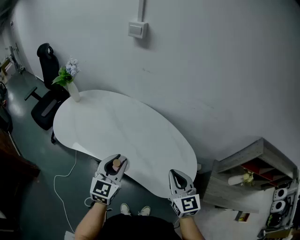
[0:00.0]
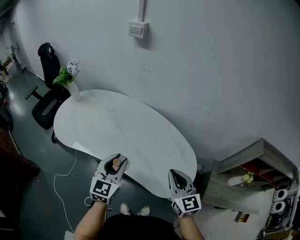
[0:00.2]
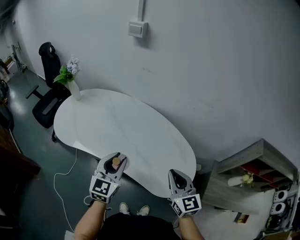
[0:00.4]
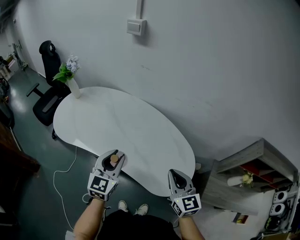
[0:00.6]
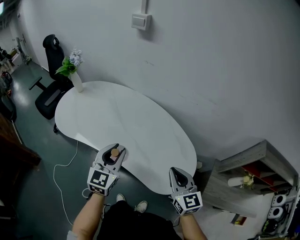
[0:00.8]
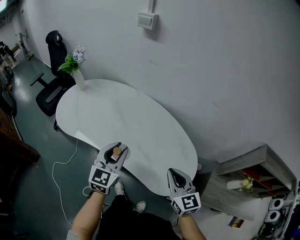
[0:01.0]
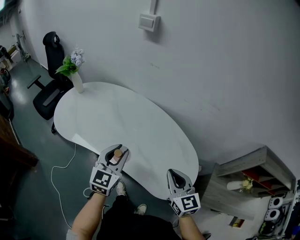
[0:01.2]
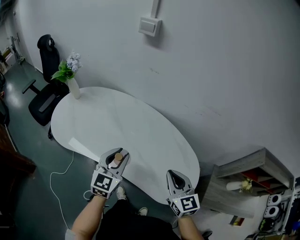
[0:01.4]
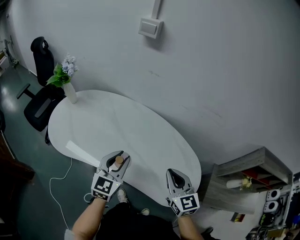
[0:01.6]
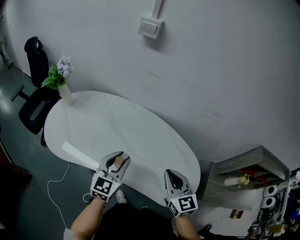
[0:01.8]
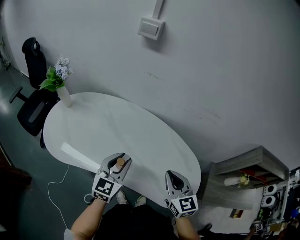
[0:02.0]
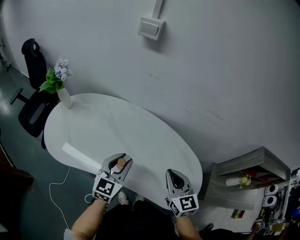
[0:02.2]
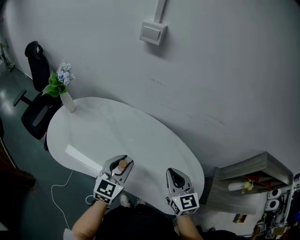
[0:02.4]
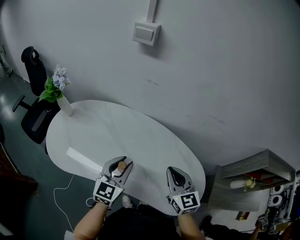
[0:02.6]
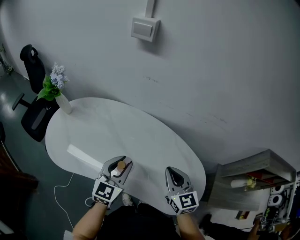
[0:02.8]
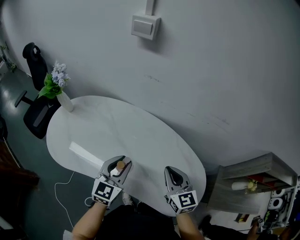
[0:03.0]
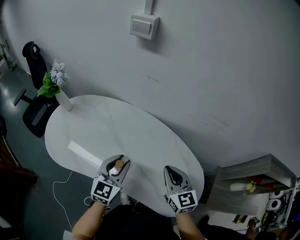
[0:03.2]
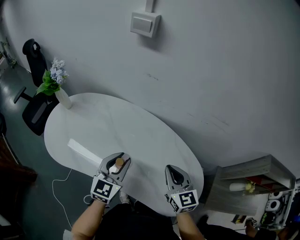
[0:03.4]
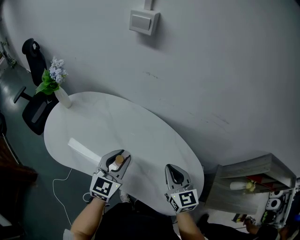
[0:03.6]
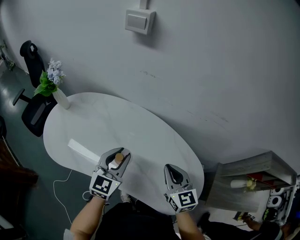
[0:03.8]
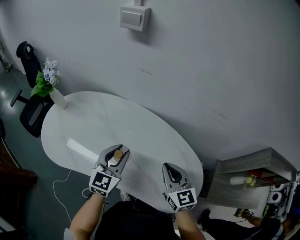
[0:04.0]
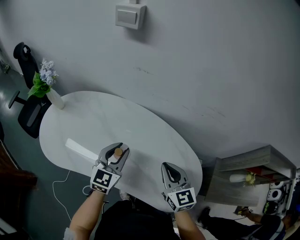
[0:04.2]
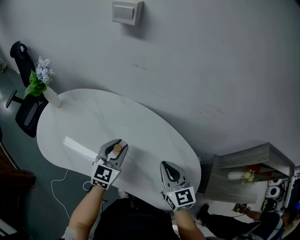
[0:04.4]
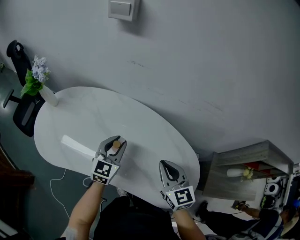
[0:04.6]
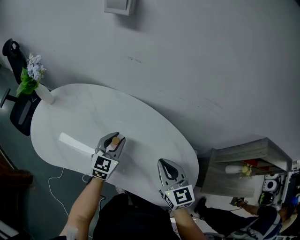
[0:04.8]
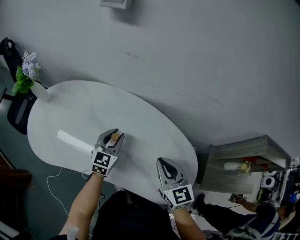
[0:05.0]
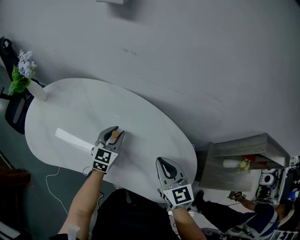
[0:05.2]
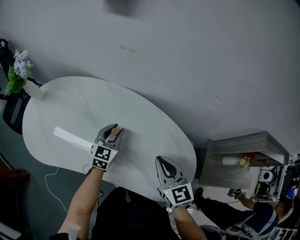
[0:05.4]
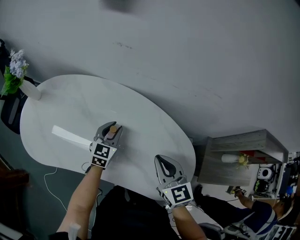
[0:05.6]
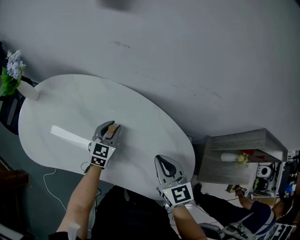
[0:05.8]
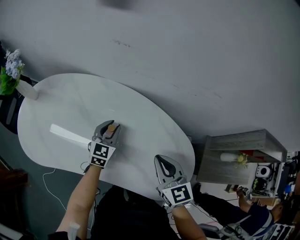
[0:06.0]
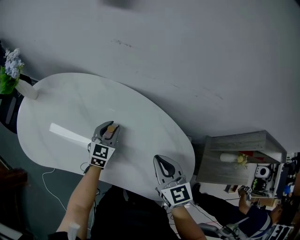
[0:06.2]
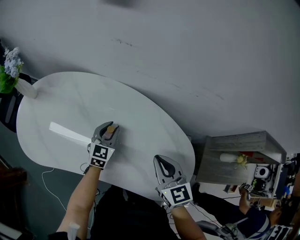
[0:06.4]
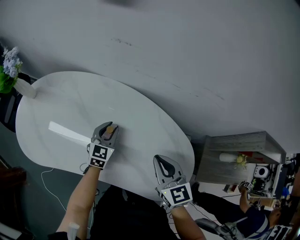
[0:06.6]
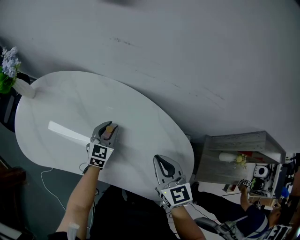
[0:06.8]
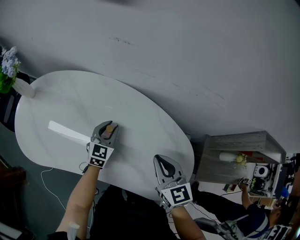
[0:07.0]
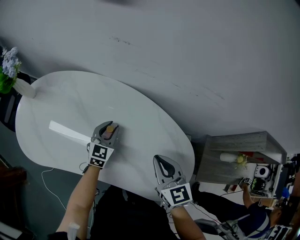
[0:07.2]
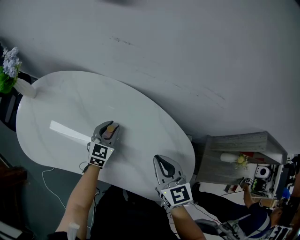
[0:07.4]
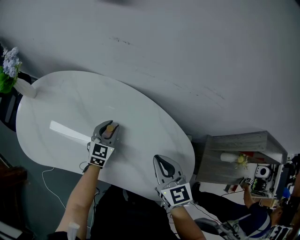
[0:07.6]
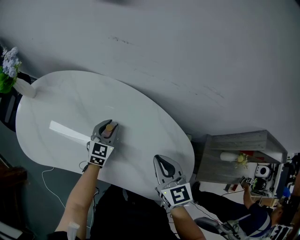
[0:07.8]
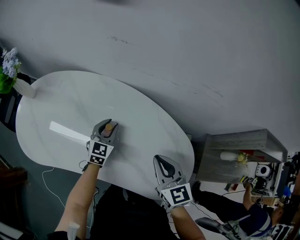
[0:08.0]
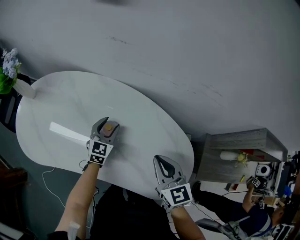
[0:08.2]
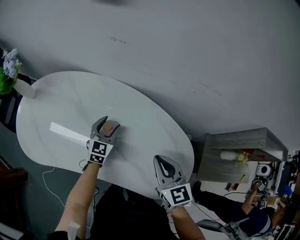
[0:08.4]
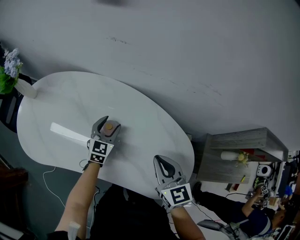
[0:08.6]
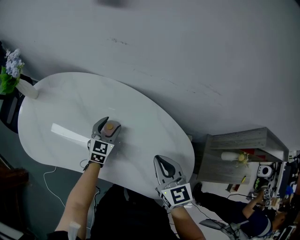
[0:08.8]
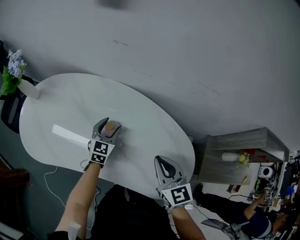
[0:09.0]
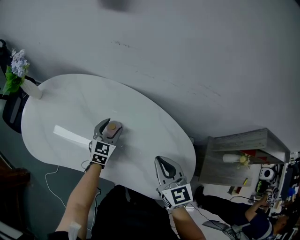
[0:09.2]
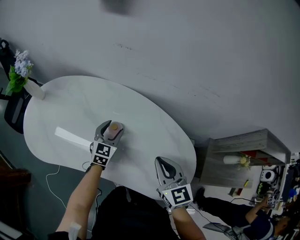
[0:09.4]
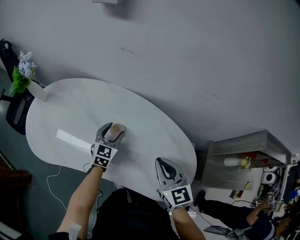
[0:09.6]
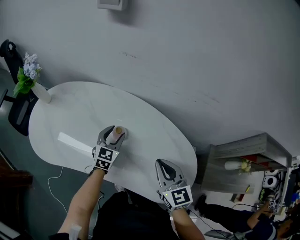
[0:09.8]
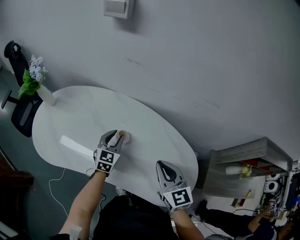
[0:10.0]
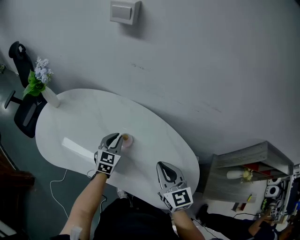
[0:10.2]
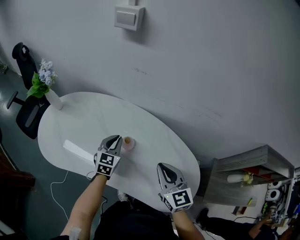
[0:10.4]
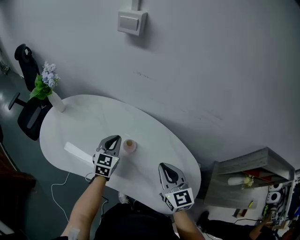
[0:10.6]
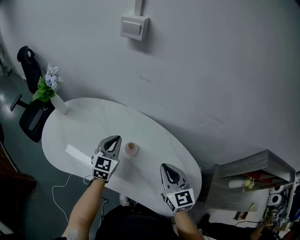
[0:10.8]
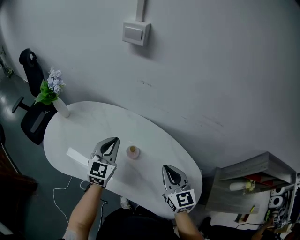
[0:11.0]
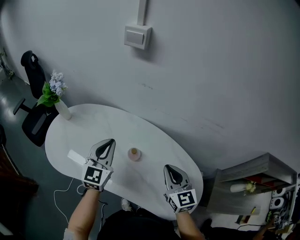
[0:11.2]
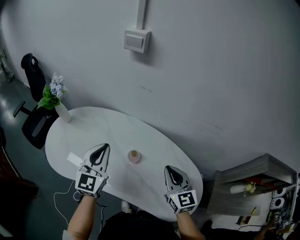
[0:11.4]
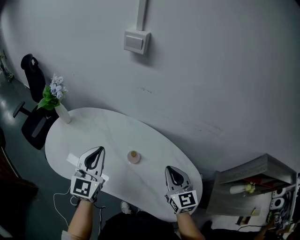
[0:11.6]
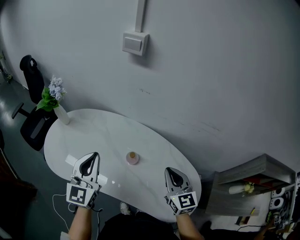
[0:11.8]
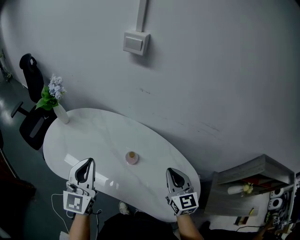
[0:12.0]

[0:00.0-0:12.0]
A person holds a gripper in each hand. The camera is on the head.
0:00.0 to 0:01.6: The right gripper is displaced forward and to the left by some 10 cm. Meanwhile the left gripper travels forward by some 10 cm.
0:01.6 to 0:03.0: The two grippers go some 10 cm forward.
0:03.0 to 0:04.4: The left gripper shifts some 5 cm forward.
0:04.4 to 0:06.0: The left gripper is displaced downward and forward by approximately 15 cm.
0:06.0 to 0:07.6: The grippers move only a little.
0:07.6 to 0:09.0: The left gripper opens its fingers.
0:09.0 to 0:10.4: The right gripper changes place by approximately 5 cm. Meanwhile the left gripper moves upward and to the left, approximately 10 cm, and closes up.
0:10.4 to 0:12.0: The left gripper travels upward, backward and to the left by about 25 cm, and changes its angle by about 30 degrees.

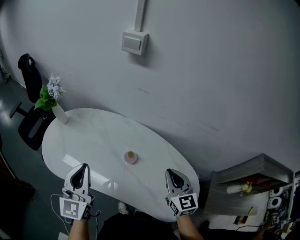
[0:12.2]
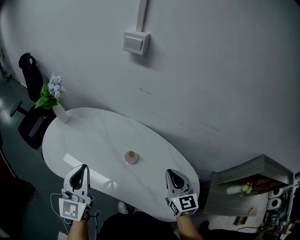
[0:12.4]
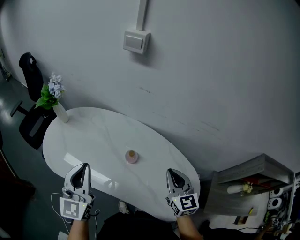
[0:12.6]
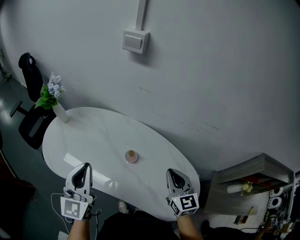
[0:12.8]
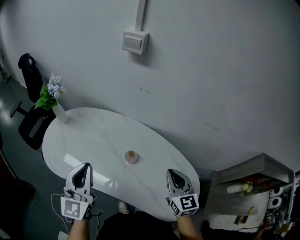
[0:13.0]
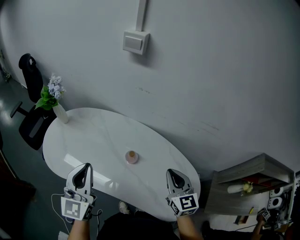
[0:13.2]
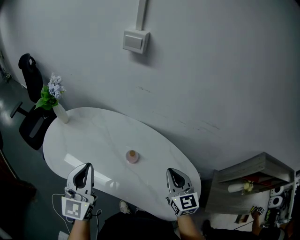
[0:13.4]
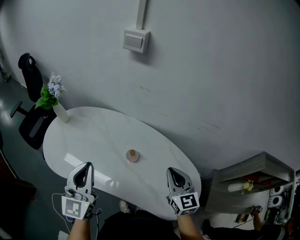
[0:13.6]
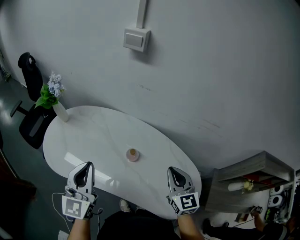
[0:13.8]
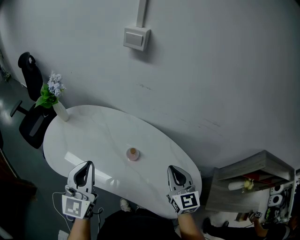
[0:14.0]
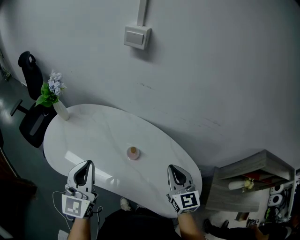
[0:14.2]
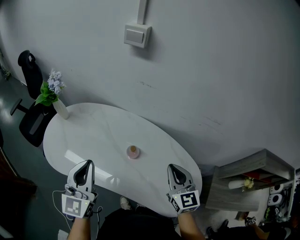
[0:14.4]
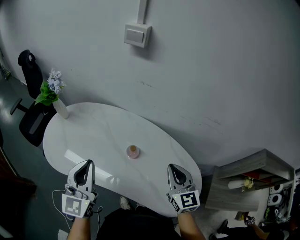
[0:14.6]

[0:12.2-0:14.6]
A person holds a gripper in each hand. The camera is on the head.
0:12.2 to 0:13.4: The two grippers keep their place.
0:13.4 to 0:14.6: The grippers make only small movements.

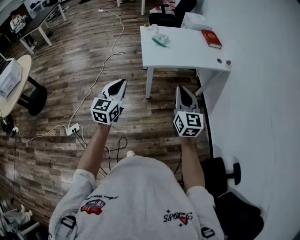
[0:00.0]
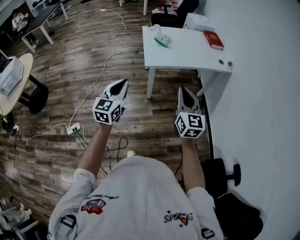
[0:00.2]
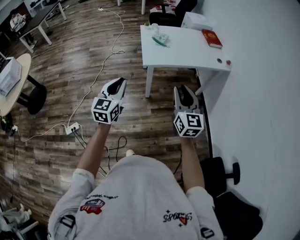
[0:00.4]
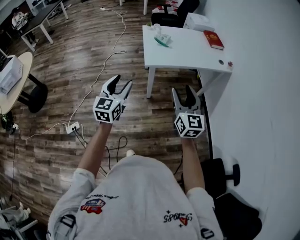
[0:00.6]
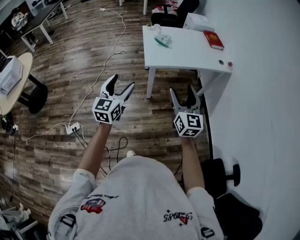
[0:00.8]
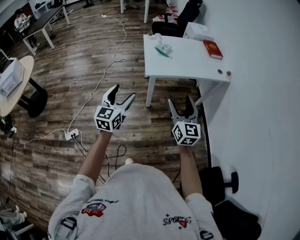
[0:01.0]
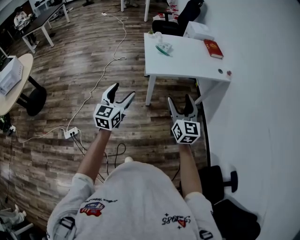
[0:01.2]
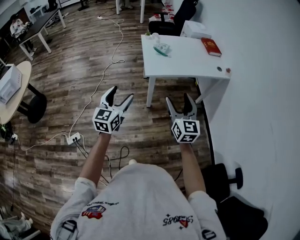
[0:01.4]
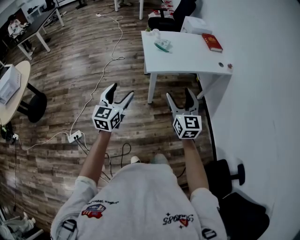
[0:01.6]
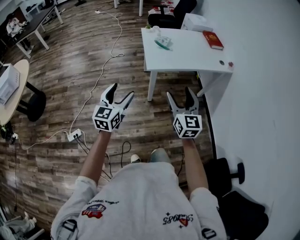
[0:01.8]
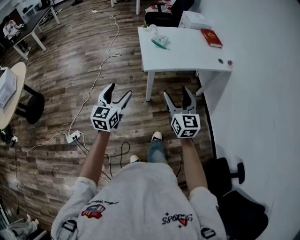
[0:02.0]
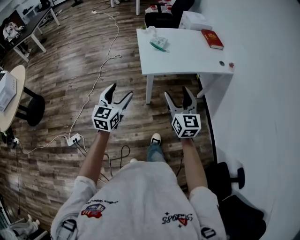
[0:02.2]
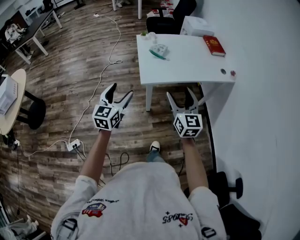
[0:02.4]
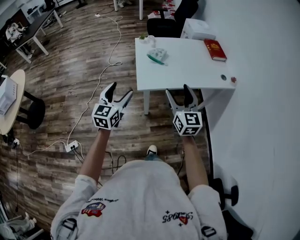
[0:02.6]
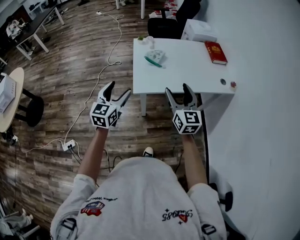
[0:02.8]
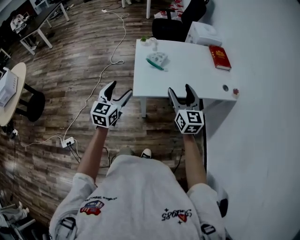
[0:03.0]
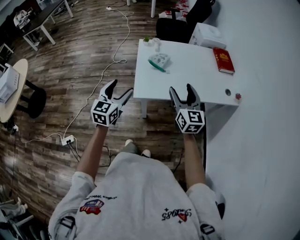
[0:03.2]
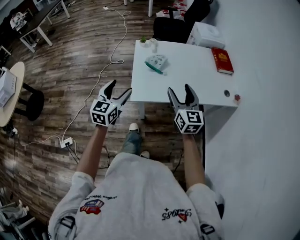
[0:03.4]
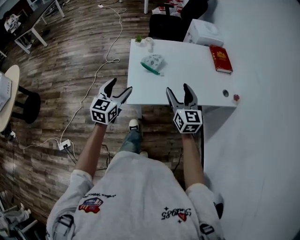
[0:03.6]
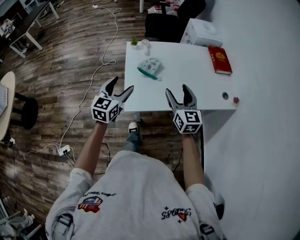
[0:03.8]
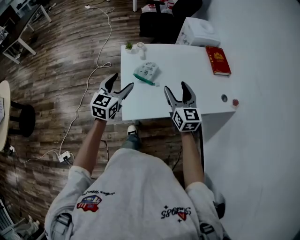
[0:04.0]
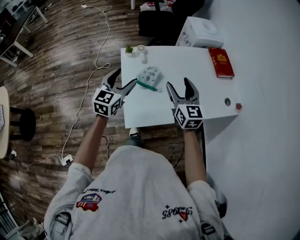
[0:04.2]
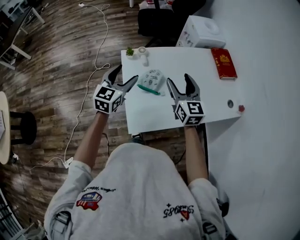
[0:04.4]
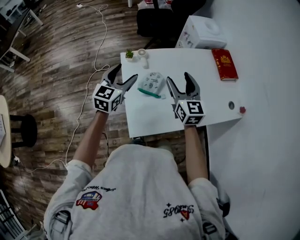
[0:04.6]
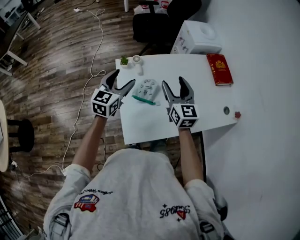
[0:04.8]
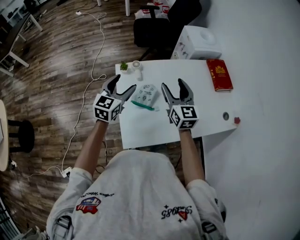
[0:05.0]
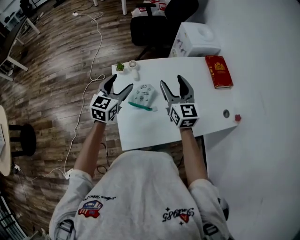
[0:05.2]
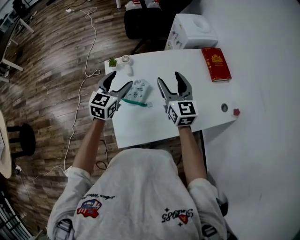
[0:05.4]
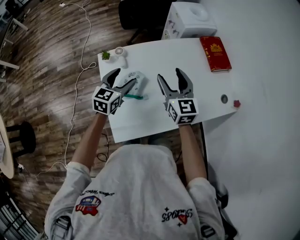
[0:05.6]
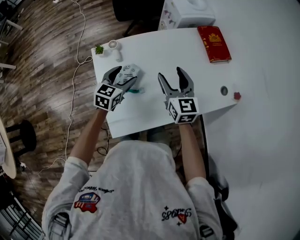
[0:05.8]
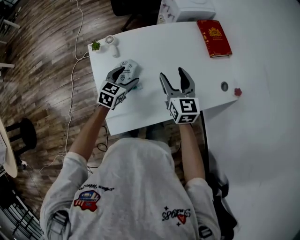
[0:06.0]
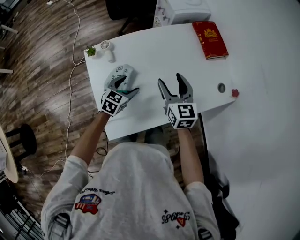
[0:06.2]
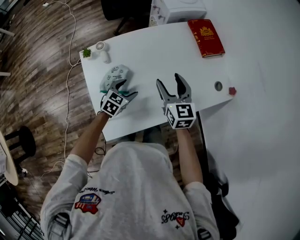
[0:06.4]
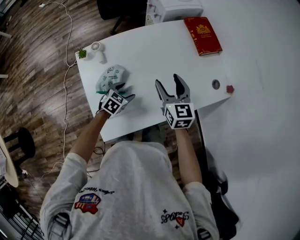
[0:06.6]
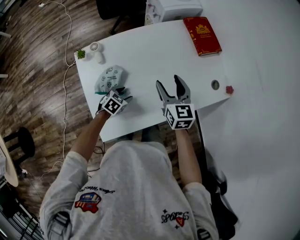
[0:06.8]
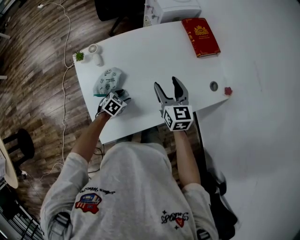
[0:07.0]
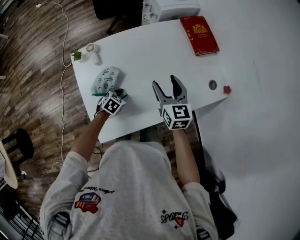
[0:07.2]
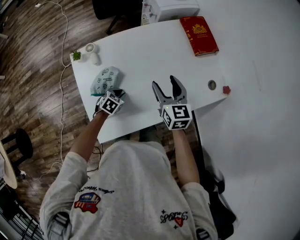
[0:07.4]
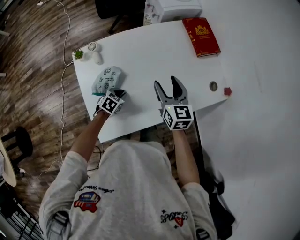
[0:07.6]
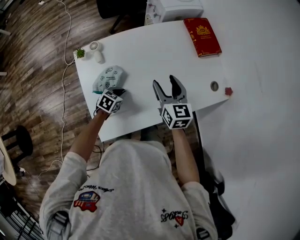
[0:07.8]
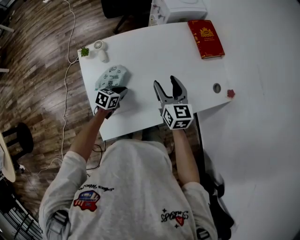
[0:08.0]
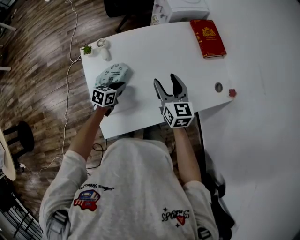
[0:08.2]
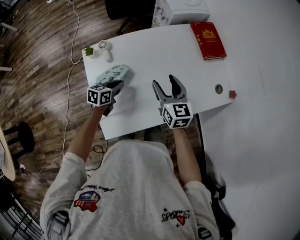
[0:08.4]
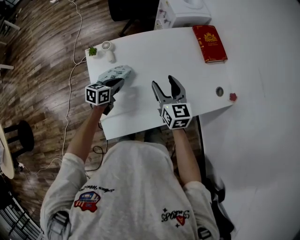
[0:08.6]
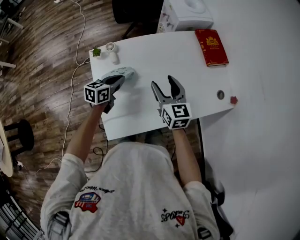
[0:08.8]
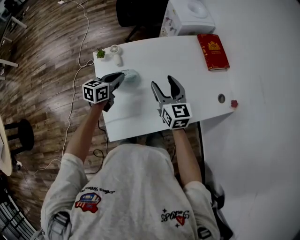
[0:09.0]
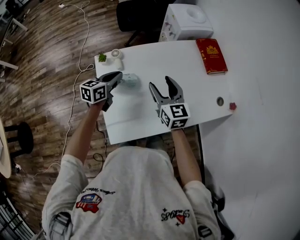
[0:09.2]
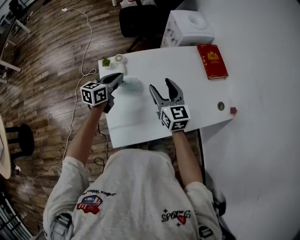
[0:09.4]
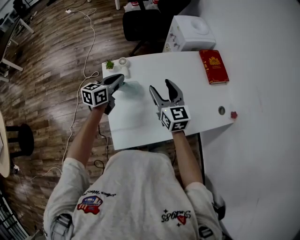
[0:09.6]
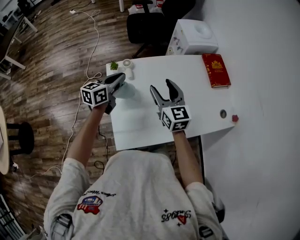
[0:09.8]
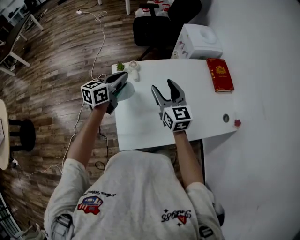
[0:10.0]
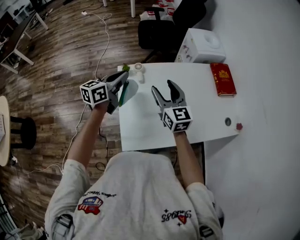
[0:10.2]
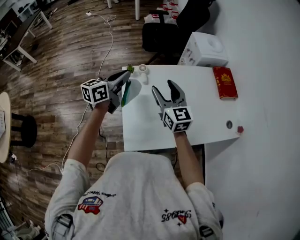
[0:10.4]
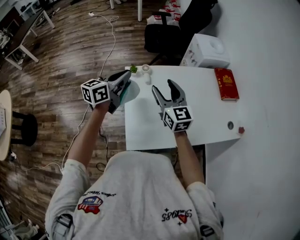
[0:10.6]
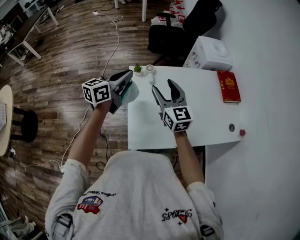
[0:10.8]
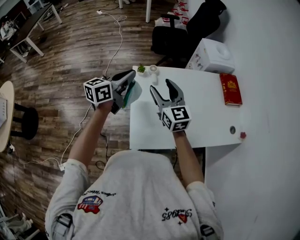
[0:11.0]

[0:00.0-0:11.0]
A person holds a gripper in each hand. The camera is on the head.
0:00.0 to 0:01.6: The left gripper ends up some 5 cm from where it was, and opens up. The right gripper moves to the left, approximately 5 cm, and opens up.
0:01.6 to 0:03.2: The grippers both shift forward by approximately 35 cm.
0:03.2 to 0:04.8: The two grippers go some 40 cm forward.
0:04.8 to 0:06.2: The left gripper travels downward and to the right by some 30 cm, and changes its angle by roughly 30 degrees, while the right gripper goes approximately 20 cm to the right and downward.
0:06.2 to 0:07.8: The left gripper moves downward, some 10 cm, and closes up.
0:07.8 to 0:09.4: The left gripper heads upward and to the left, covering about 25 cm, and points its fingers approximately 30 degrees further upward. The right gripper is displaced to the left and upward by about 15 cm.
0:09.4 to 0:11.0: The left gripper goes approximately 20 cm upward, to the left and backward; the right gripper heads to the left, covering some 20 cm.
